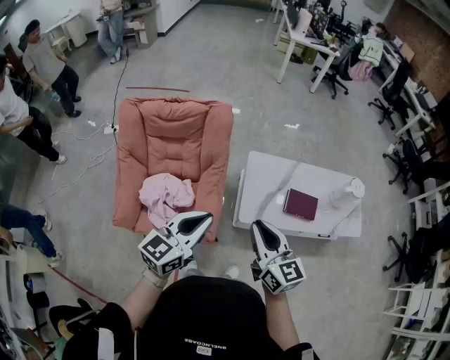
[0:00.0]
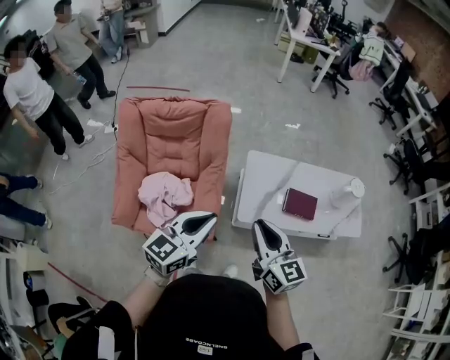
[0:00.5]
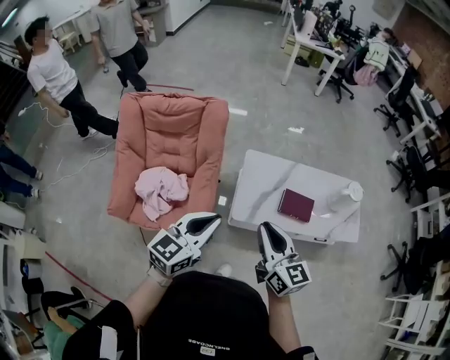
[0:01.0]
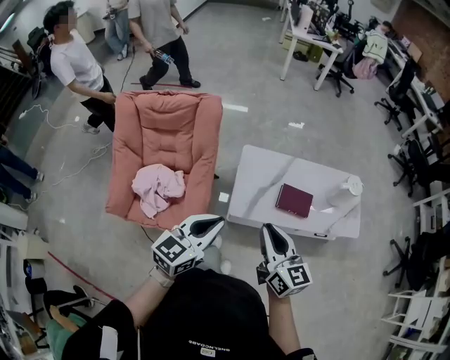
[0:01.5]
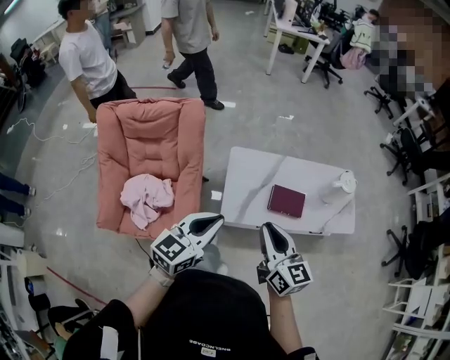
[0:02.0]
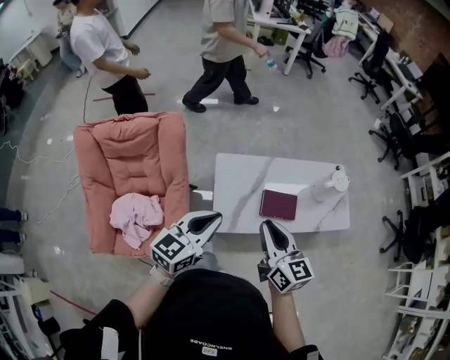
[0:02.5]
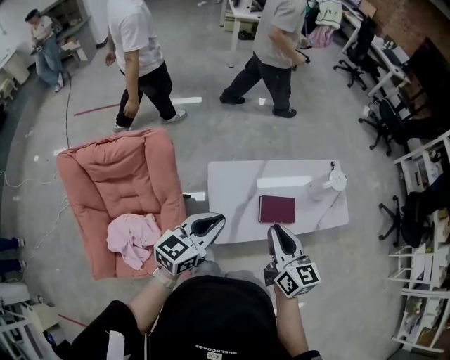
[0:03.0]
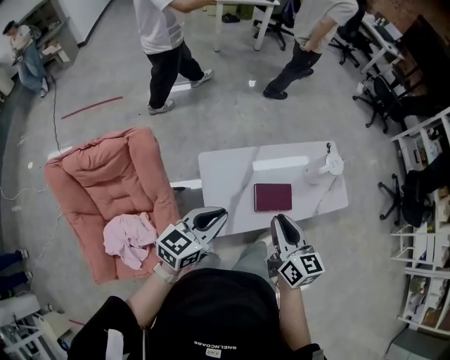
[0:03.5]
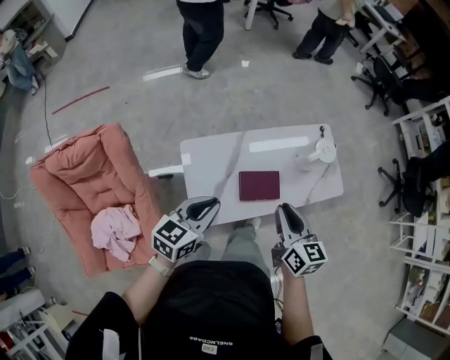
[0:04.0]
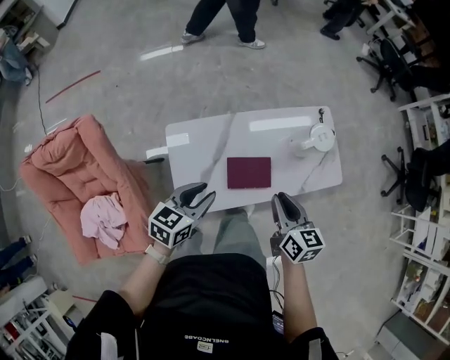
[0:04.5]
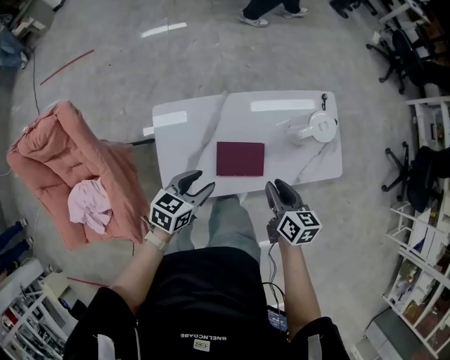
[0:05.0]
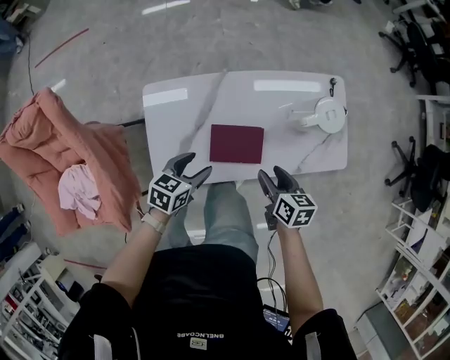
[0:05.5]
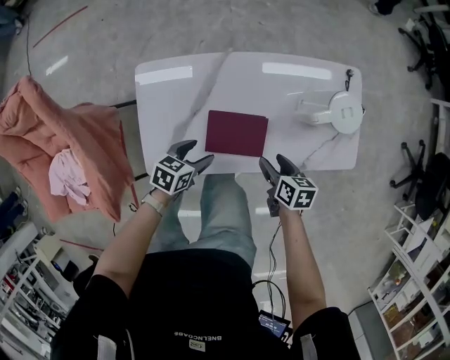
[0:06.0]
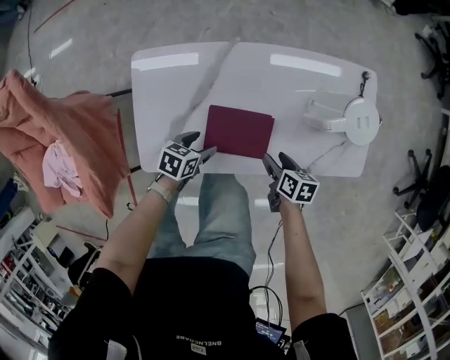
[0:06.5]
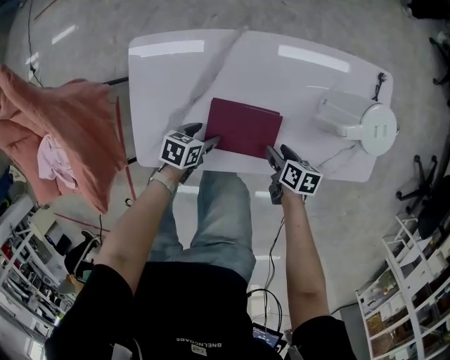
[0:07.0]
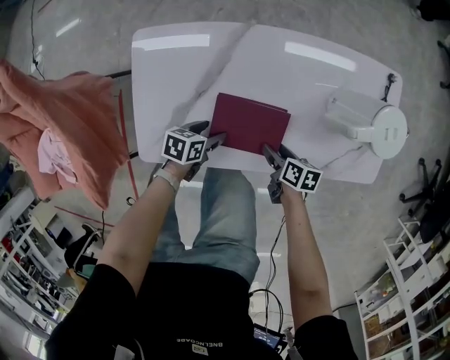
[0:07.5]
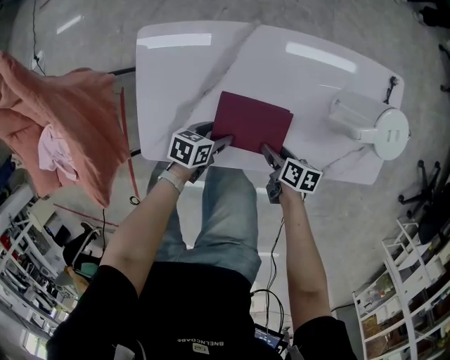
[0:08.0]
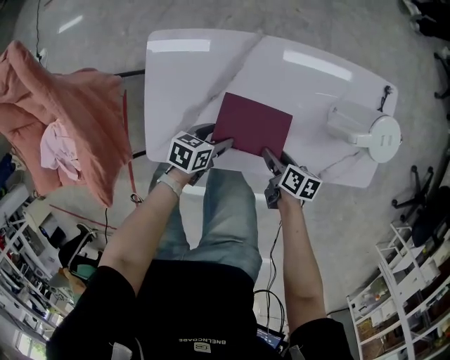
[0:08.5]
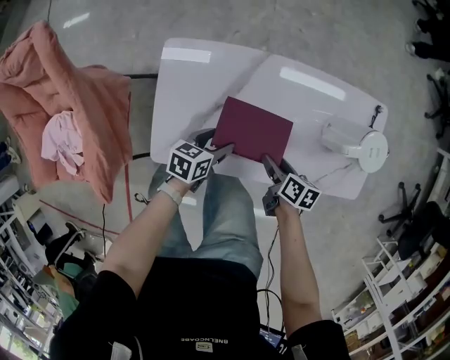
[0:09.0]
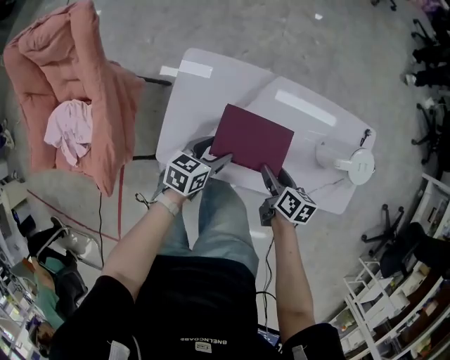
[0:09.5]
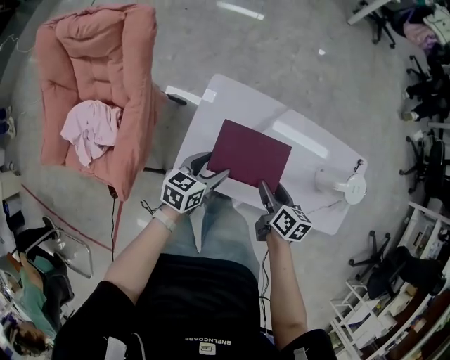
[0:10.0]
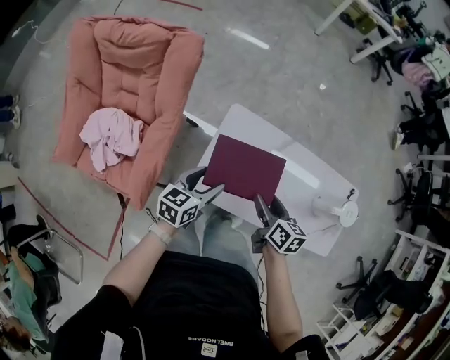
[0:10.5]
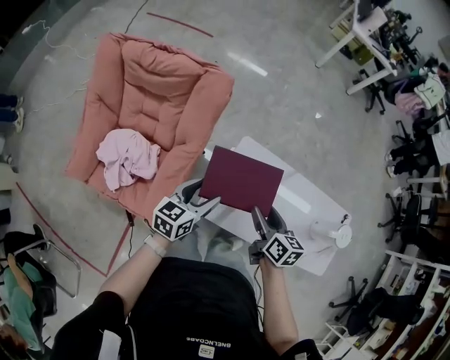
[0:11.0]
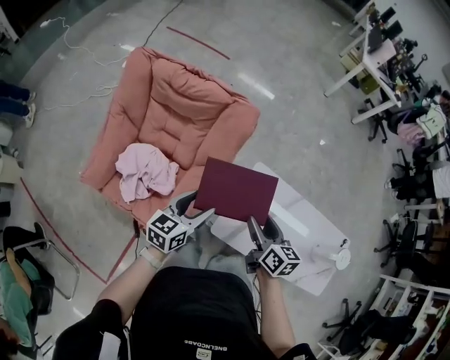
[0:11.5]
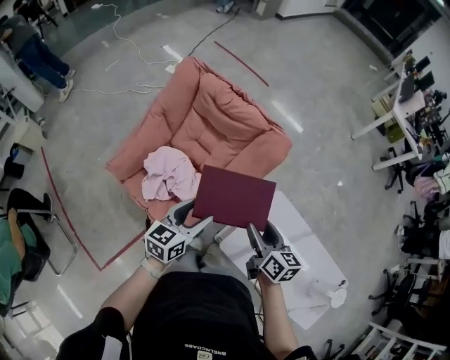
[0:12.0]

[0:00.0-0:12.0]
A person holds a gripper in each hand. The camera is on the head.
0:00.0 to 0:02.0: The left gripper is displaced to the right and forward by some 15 cm. The right gripper heads to the right, covering about 15 cm.
0:02.0 to 0:04.0: The right gripper travels forward and to the right by roughly 30 cm, and turns by some 30 degrees; the left gripper heads forward and downward, covering approximately 30 cm, and changes its angle by about 20 degrees.
0:04.0 to 0:06.0: The right gripper shifts roughly 40 cm downward and to the right, rotates some 40 degrees, and opens up; the left gripper is displaced downward by roughly 40 cm, rotates about 30 degrees, and opens up.
0:06.0 to 0:08.0: The grippers both shift downward by roughly 15 cm.
0:08.0 to 0:10.0: The two grippers go some 30 cm upward. The right gripper swivels approximately 20 degrees. The left gripper changes its angle by some 30 degrees.
0:10.0 to 0:12.0: The pair of grippers is taken about 40 cm. The right gripper changes its angle by some 40 degrees. The left gripper turns by about 40 degrees.

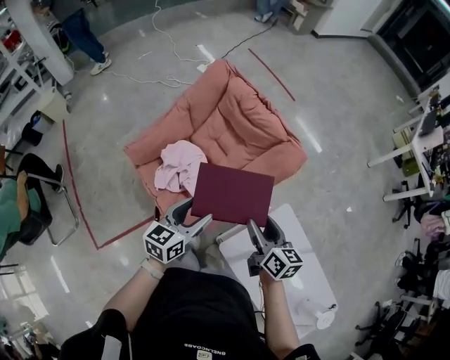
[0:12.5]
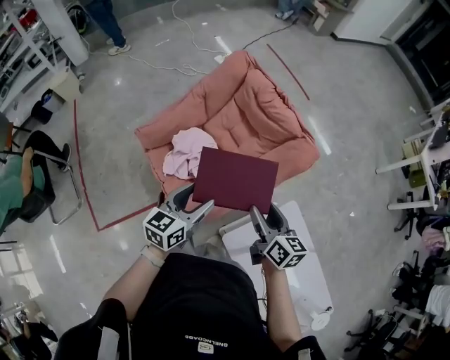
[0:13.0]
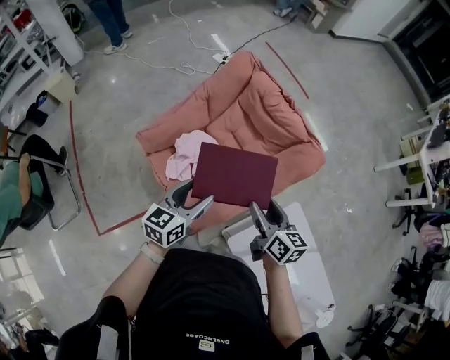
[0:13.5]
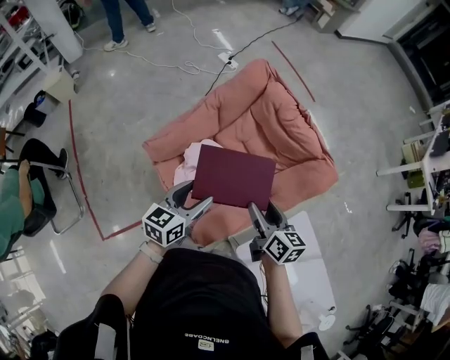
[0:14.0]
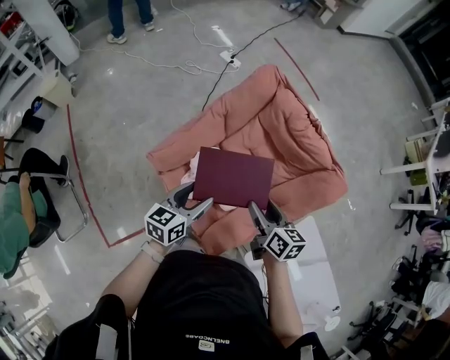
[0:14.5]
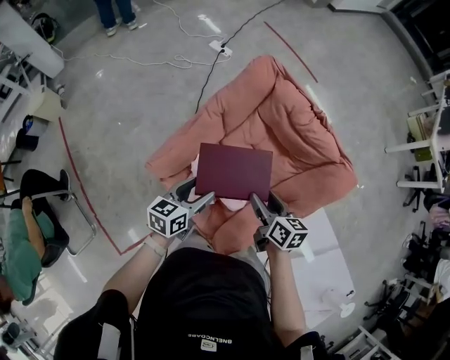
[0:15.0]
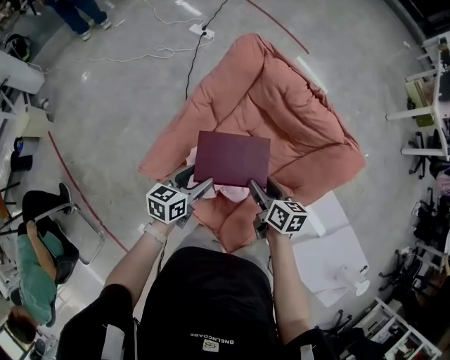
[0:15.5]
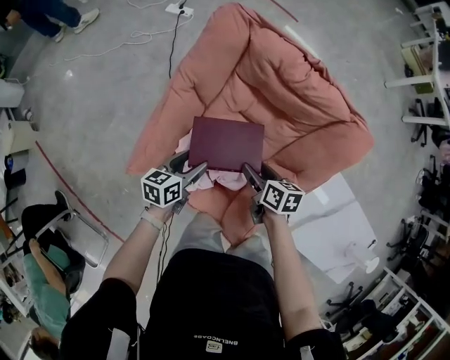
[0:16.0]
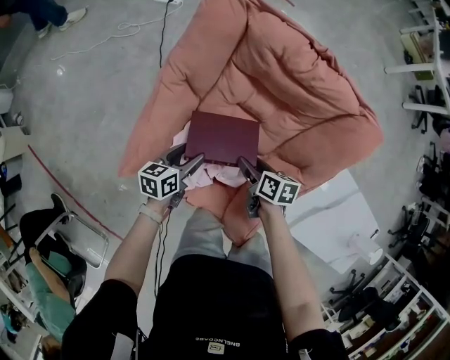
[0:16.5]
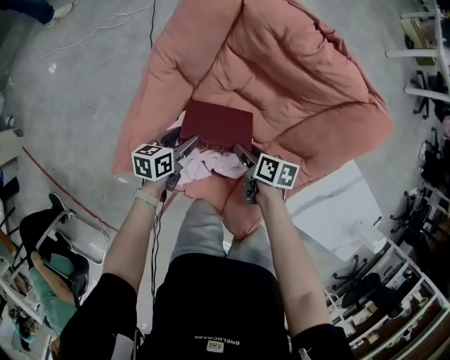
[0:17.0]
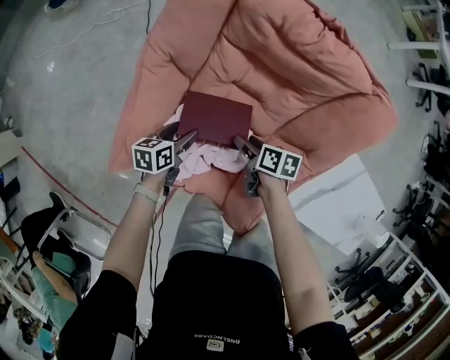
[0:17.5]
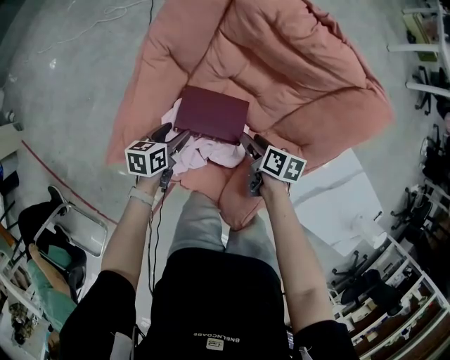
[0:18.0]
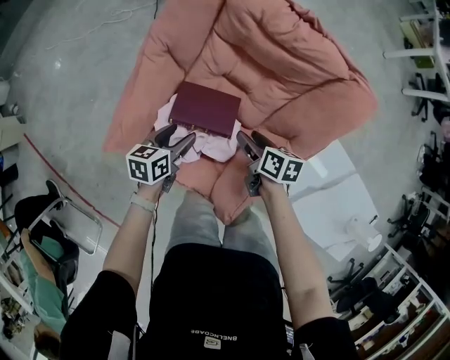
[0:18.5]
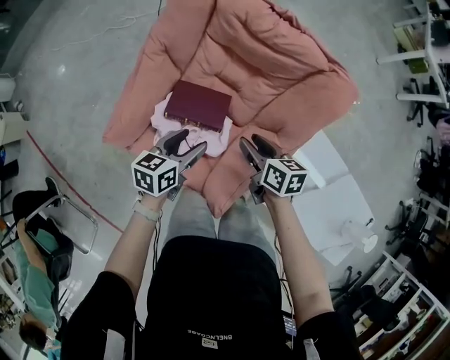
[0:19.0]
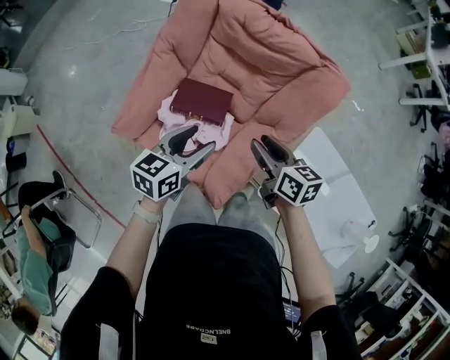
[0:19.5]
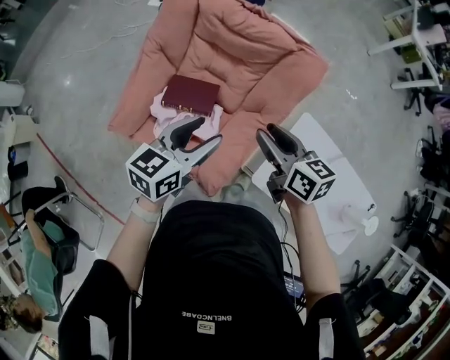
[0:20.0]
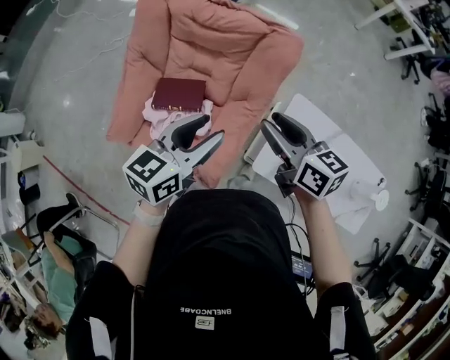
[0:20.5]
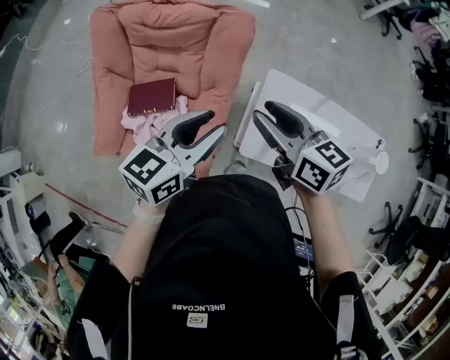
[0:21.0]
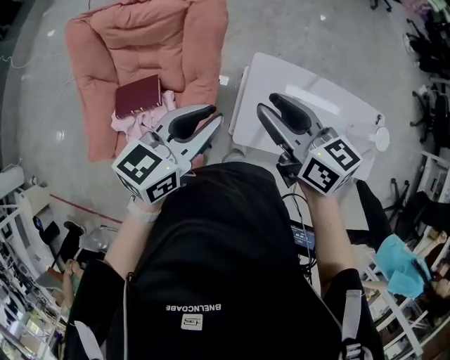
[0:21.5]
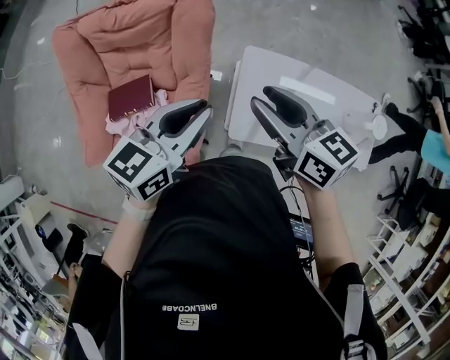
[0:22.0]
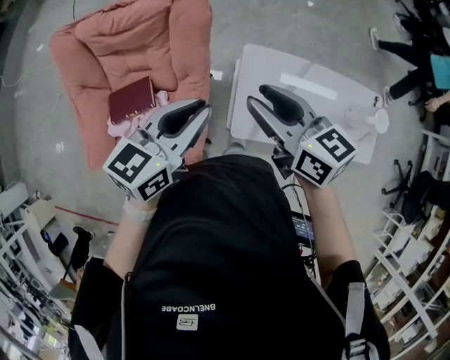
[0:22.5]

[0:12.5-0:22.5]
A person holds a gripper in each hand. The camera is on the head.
0:12.5 to 0:14.5: Both grippers travel together to the left and forward, roughly 25 cm.
0:14.5 to 0:16.5: The left gripper shifts some 30 cm downward and forward, and rotates some 30 degrees; the right gripper shifts some 25 cm downward, and turns by roughly 30 degrees.
0:16.5 to 0:18.5: The left gripper goes downward and returns, about 10 cm each way. Meanwhile the right gripper shifts some 5 cm to the right, and moves some 5 cm downward and comes back.
0:18.5 to 0:20.5: Both grippers travel together upward and to the right, roughly 40 cm. The left gripper changes its angle by some 30 degrees, while the right gripper swivels some 30 degrees, and closes up.
0:20.5 to 0:22.5: The two grippers go about 15 cm to the right. The left gripper rotates some 20 degrees, and closes up.

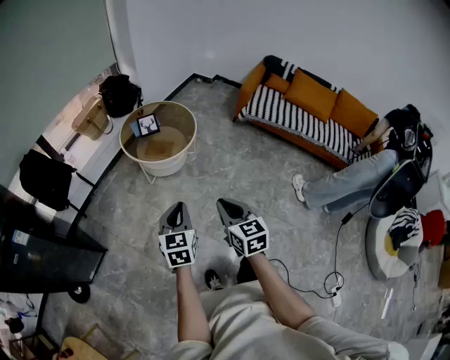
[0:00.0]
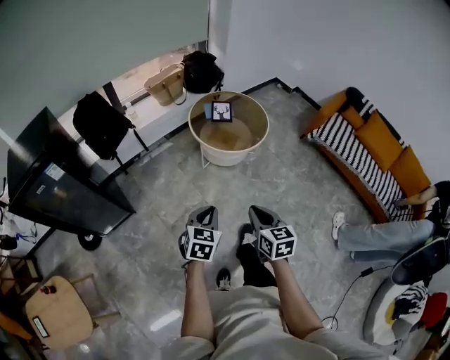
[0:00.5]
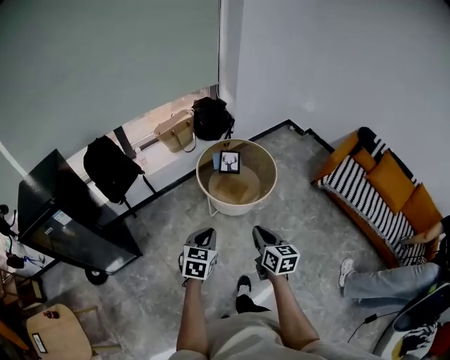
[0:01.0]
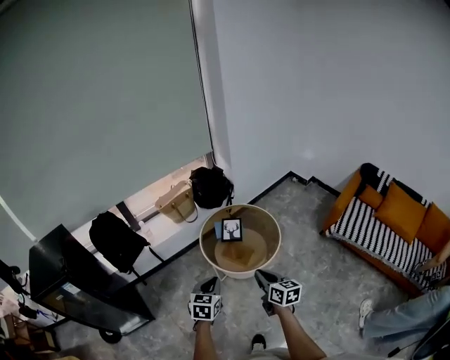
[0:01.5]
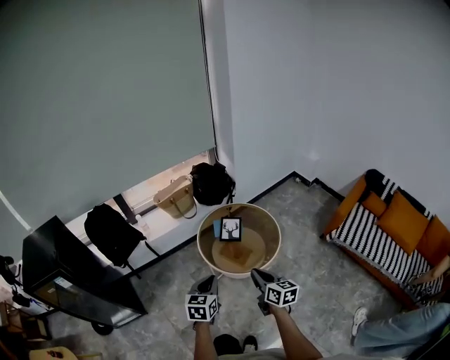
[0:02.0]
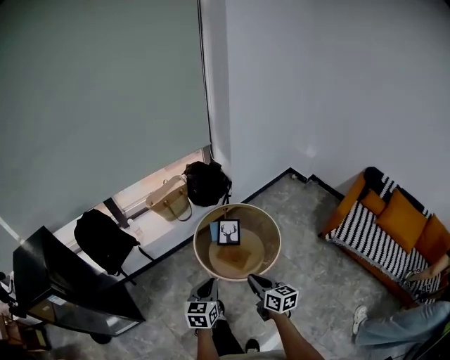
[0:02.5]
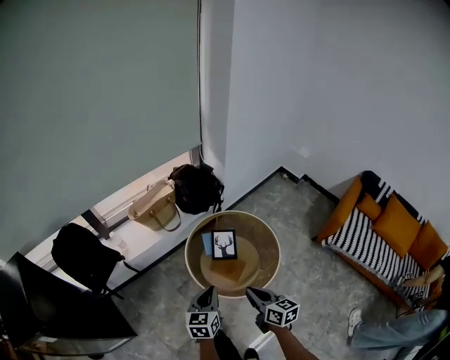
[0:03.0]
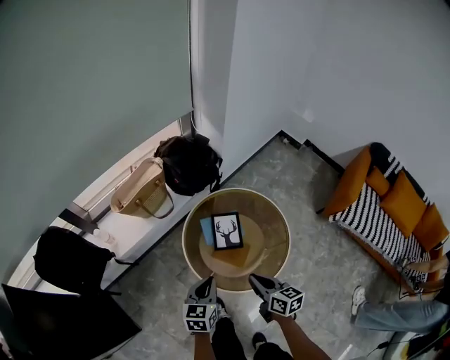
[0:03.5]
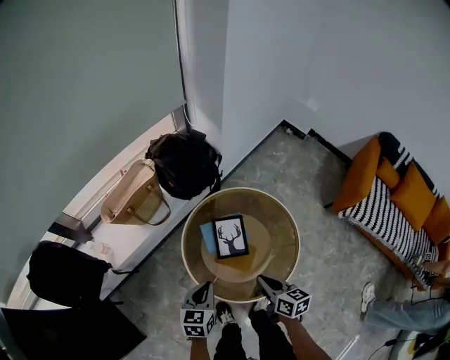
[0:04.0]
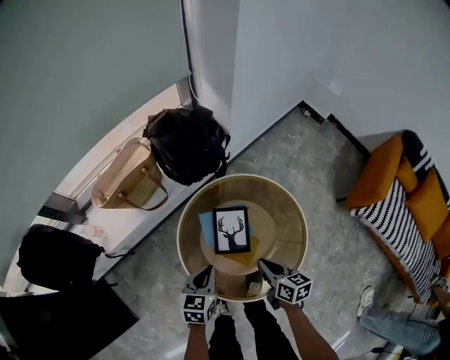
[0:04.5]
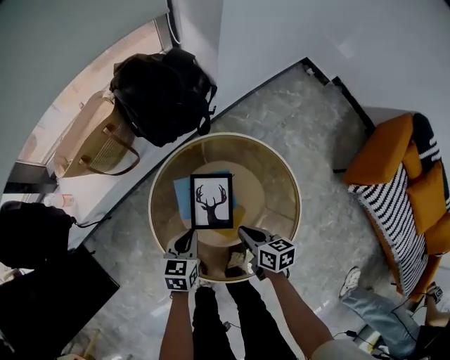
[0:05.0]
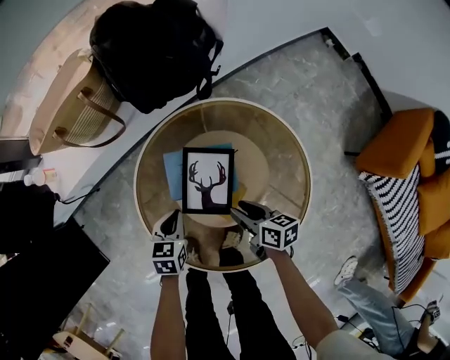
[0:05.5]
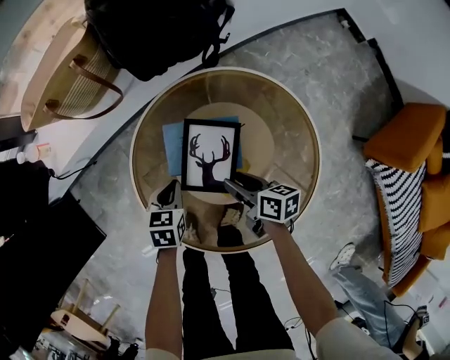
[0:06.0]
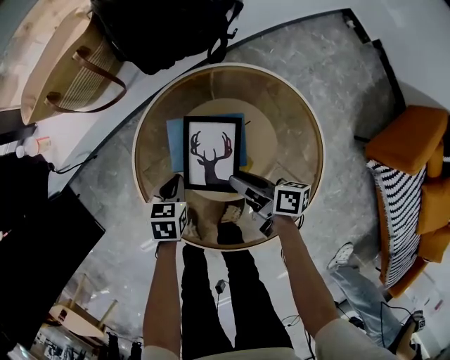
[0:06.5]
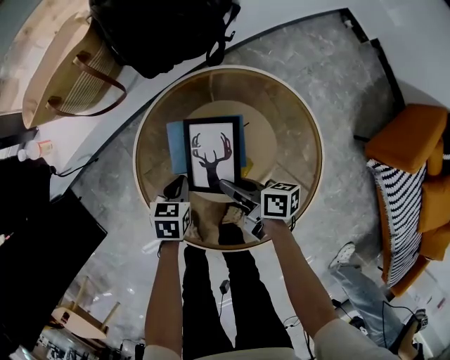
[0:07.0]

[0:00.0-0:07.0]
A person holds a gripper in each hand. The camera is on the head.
0:00.0 to 0:02.0: The two grippers go some 40 cm forward. The right gripper turns by roughly 30 degrees.
0:02.0 to 0:03.5: The two grippers go approximately 35 cm forward and downward.
0:03.5 to 0:05.0: The grippers both shift downward and forward by some 30 cm.
0:05.0 to 0:07.0: The right gripper is displaced downward by about 5 cm, changes its angle by about 30 degrees, and opens, then closes once more. The left gripper is displaced downward by some 15 cm.
